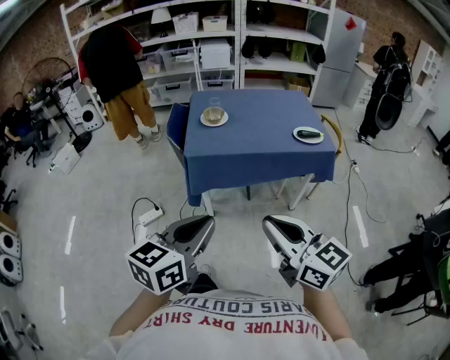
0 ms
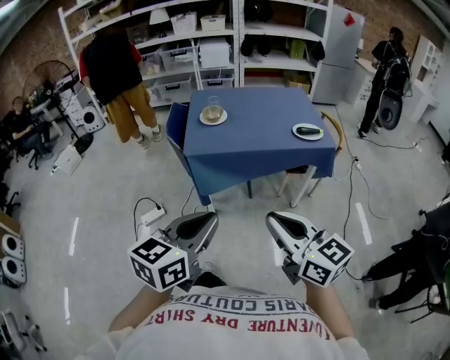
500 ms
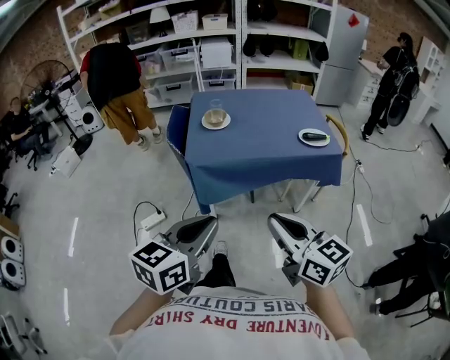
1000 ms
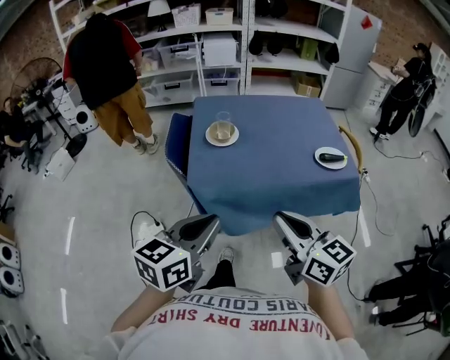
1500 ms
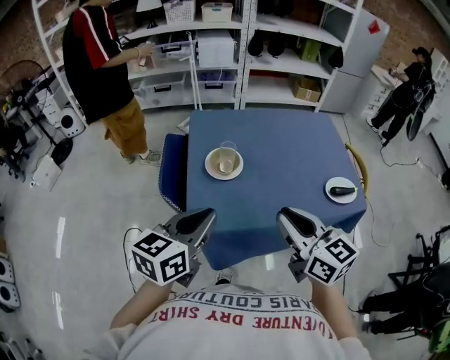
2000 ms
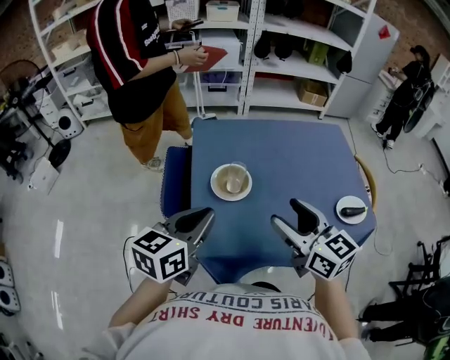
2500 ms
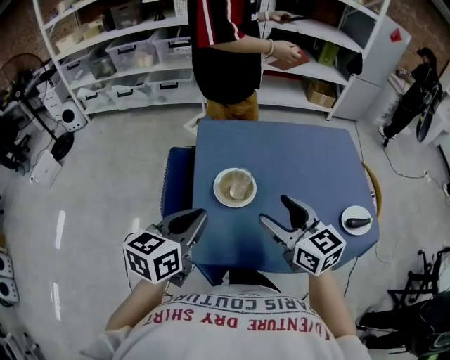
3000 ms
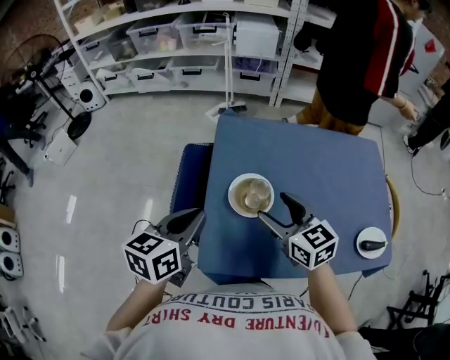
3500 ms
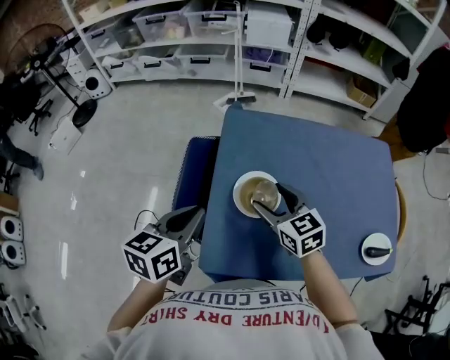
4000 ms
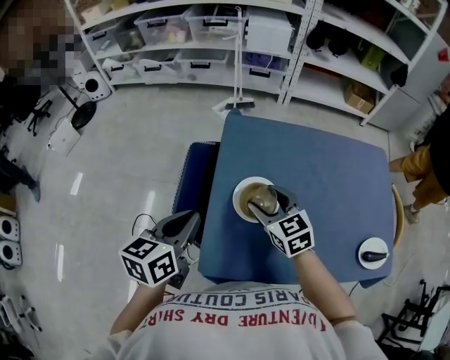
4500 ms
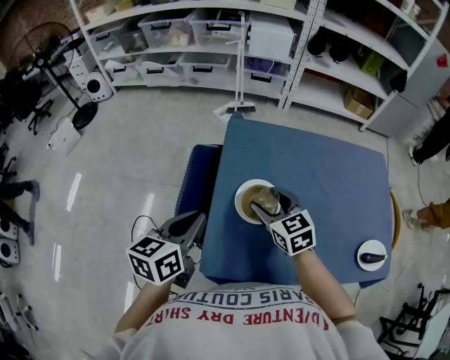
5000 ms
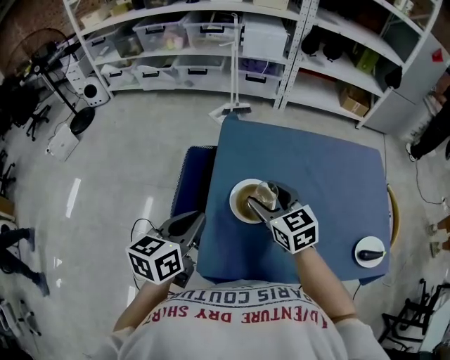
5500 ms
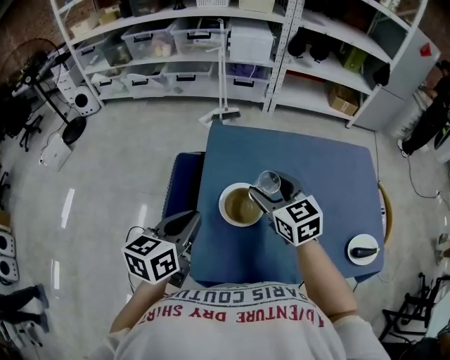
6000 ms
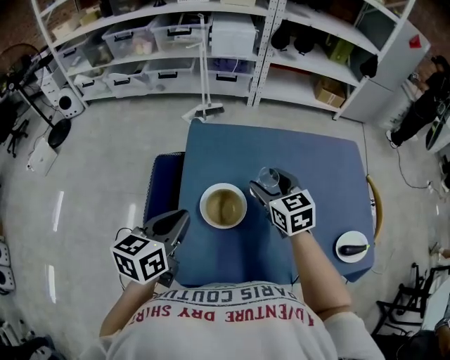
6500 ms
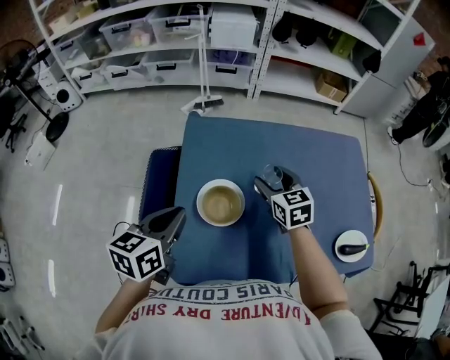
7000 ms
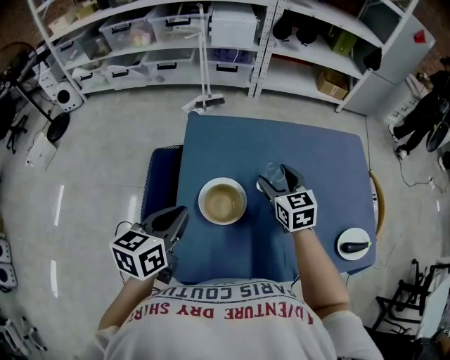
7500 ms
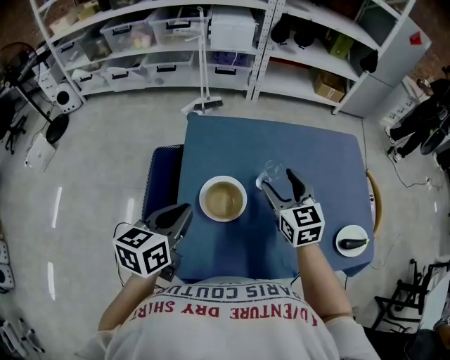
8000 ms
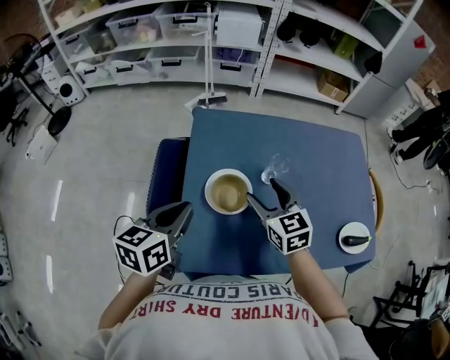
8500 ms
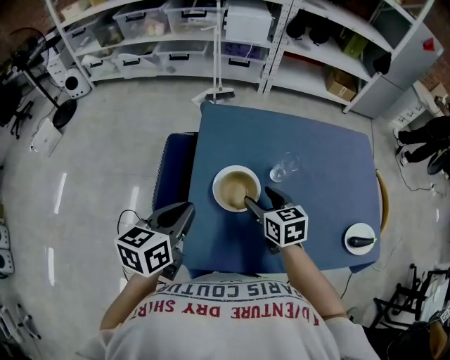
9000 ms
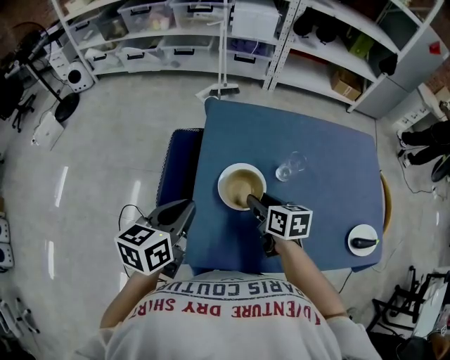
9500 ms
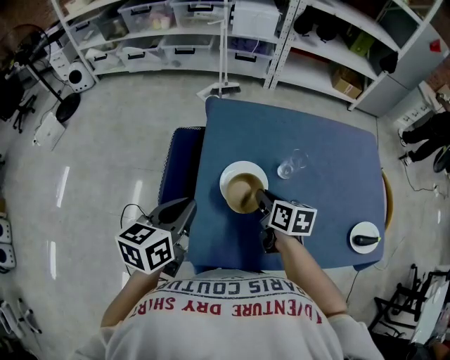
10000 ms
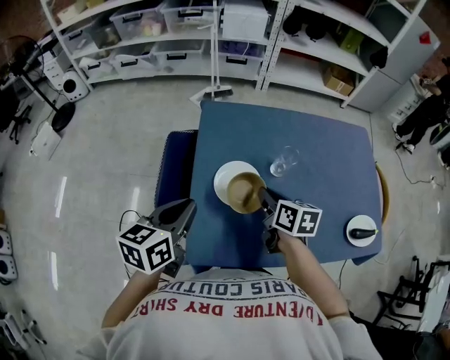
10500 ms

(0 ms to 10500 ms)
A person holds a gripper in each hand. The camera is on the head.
0 ms - 2000 ms: The two grippers go approximately 40 cm forward.
2000 ms - 4000 ms: The left gripper is displaced forward, to the left and downward by roughly 20 cm, and changes its angle by approximately 20 degrees. The right gripper moves forward and downward, approximately 30 cm, swivels about 20 degrees, and opens up.
4000 ms - 6500 ms: The left gripper shifts by roughly 5 cm, while the right gripper is displaced to the right and forward by some 10 cm.
6500 ms - 8500 ms: The right gripper heads backward, covering about 5 cm.
8500 ms - 10500 ms: The right gripper rotates roughly 40 degrees, and closes.

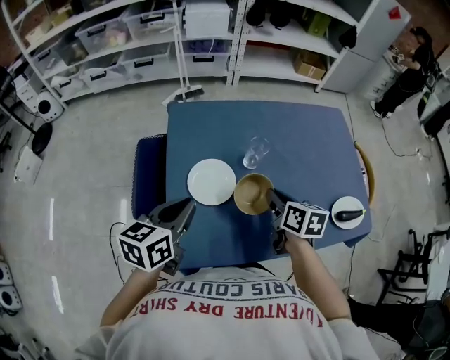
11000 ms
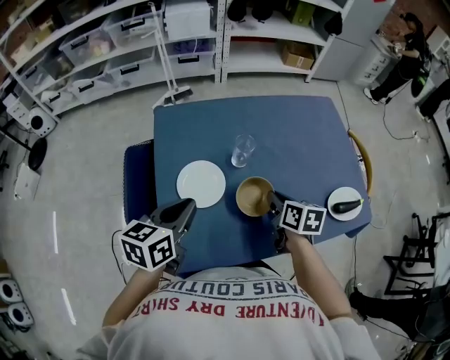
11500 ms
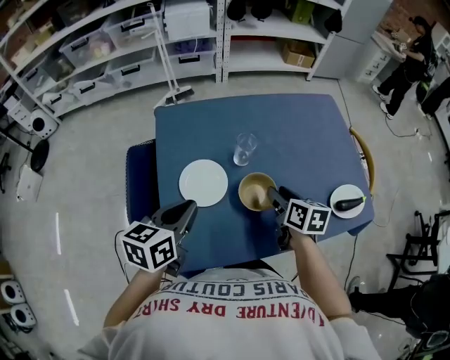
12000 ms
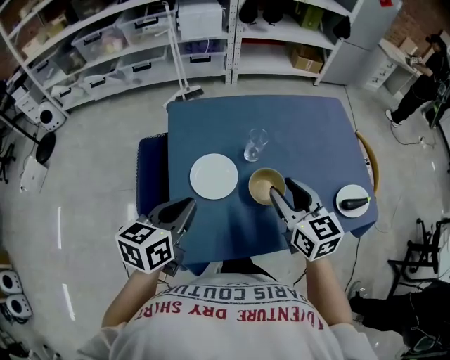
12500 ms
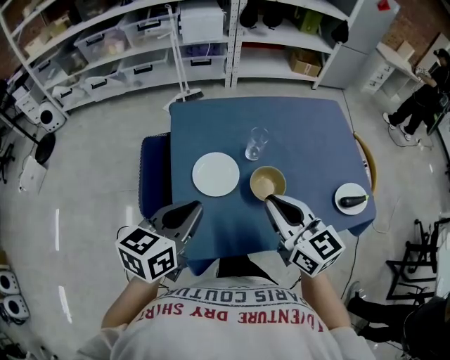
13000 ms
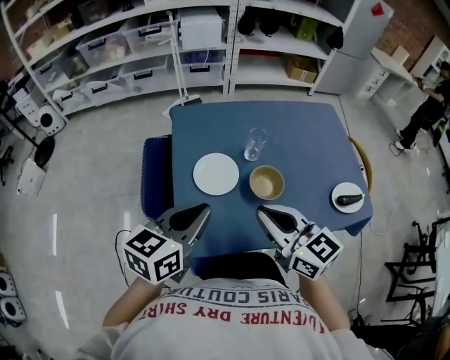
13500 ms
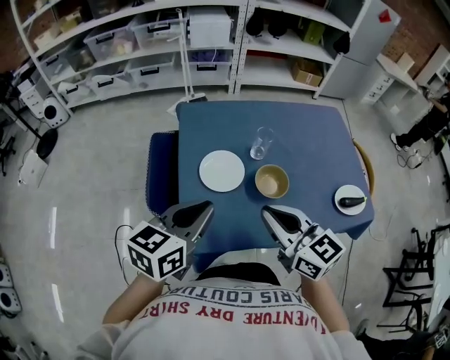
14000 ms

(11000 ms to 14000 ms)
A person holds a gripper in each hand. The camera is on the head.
11000 ms - 12500 ms: The right gripper goes approximately 10 cm upward, swivels approximately 30 degrees, and opens up.
12500 ms - 14000 ms: The left gripper is displaced backward by some 5 cm. The right gripper travels backward and to the left by about 15 cm, and closes.

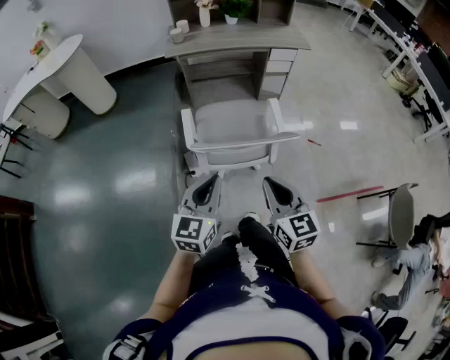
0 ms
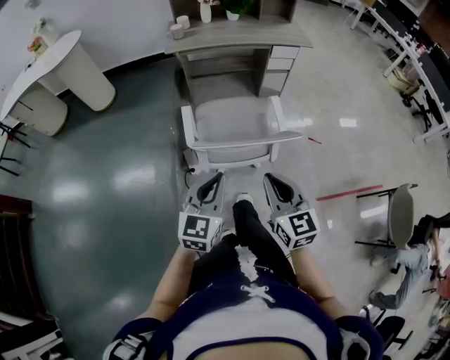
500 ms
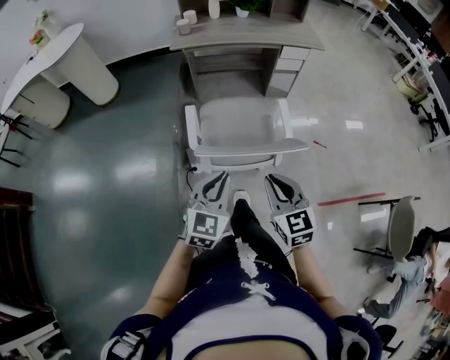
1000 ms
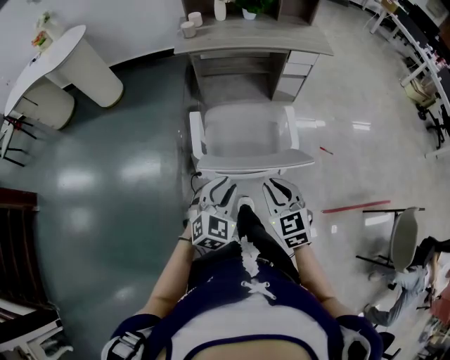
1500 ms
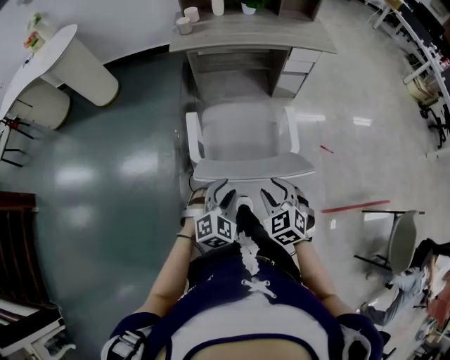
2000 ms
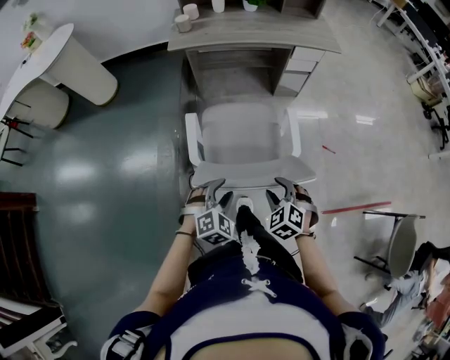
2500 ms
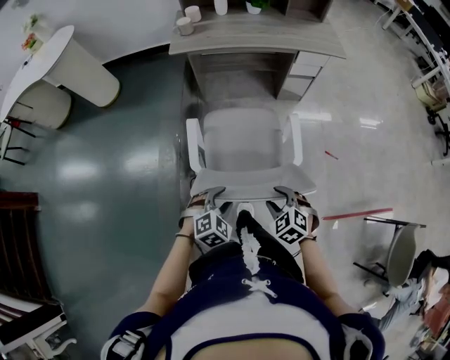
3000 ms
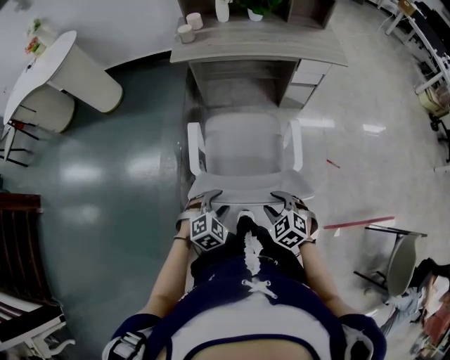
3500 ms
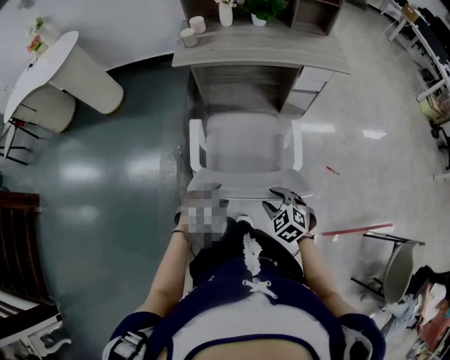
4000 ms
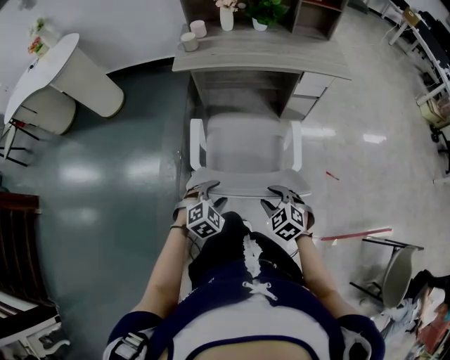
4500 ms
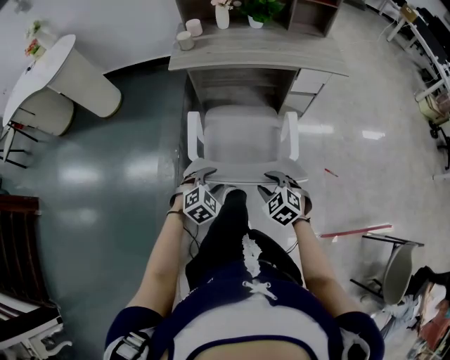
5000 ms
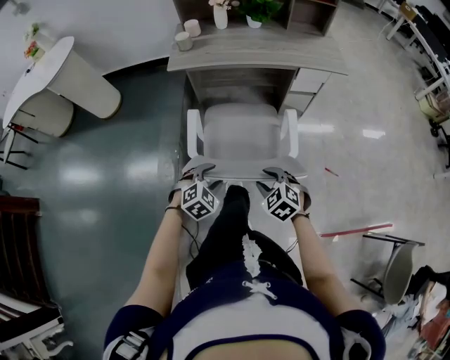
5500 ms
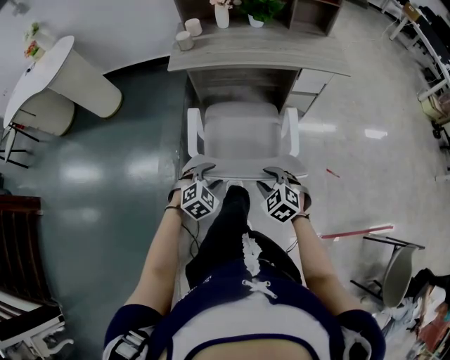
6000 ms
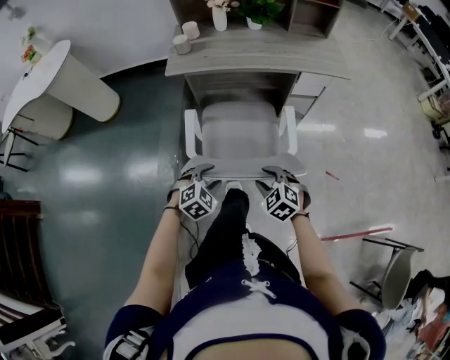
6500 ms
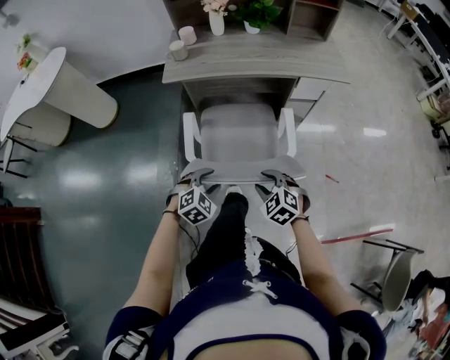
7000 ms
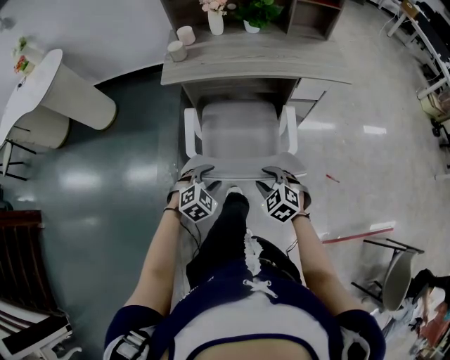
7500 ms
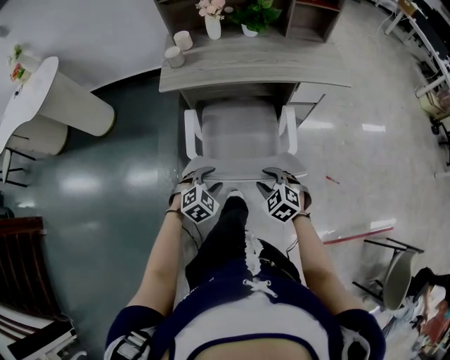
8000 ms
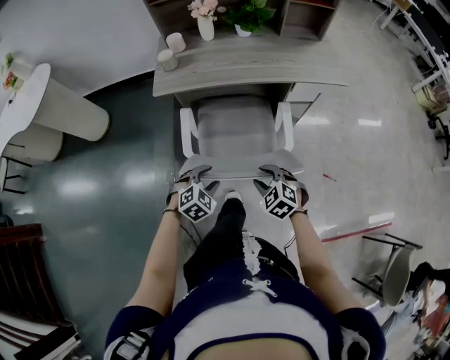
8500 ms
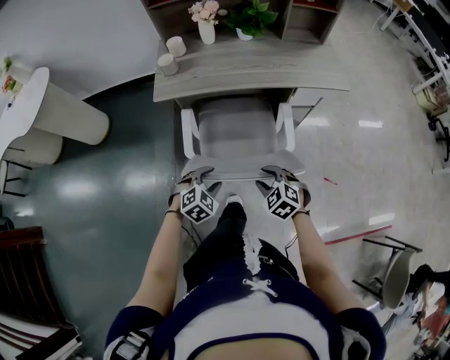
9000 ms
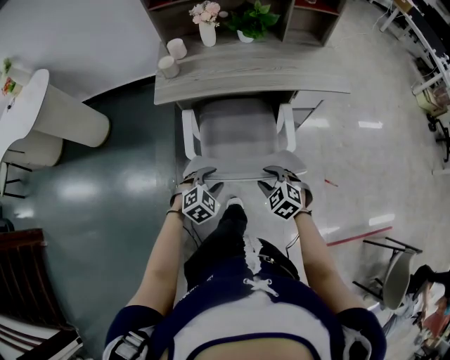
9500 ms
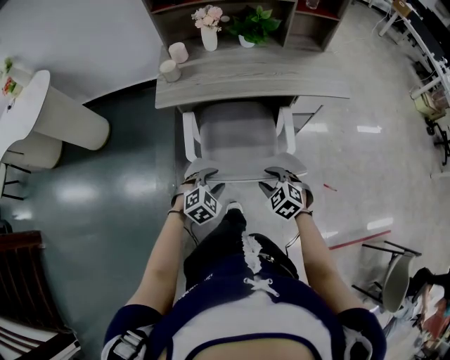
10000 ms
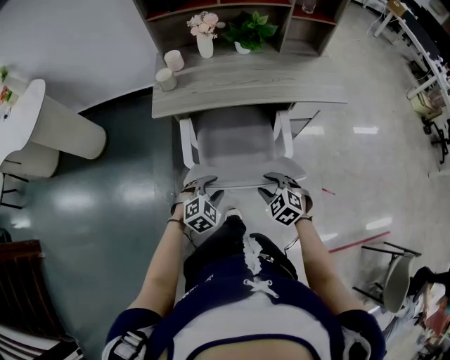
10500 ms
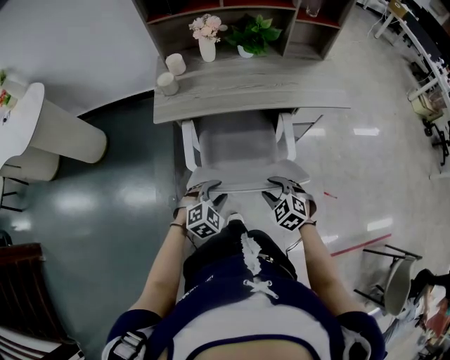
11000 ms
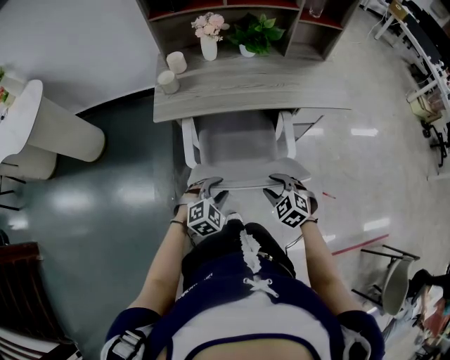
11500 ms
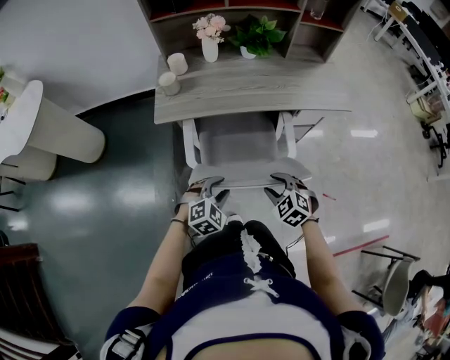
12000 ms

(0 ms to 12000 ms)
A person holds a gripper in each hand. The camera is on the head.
0 ms - 2000 ms: The left gripper heads downward and forward, covering approximately 20 cm, swivels roughly 50 degrees, and opens its fingers; the right gripper moves forward and downward, some 20 cm, rotates roughly 40 degrees, and opens.
2000 ms - 4000 ms: Both grippers move forward and downward, roughly 15 cm.
4000 ms - 6000 ms: The two grippers go some 10 cm forward.
6000 ms - 8000 ms: Both grippers travel together forward, some 10 cm.
8000 ms - 10000 ms: Both grippers move forward, about 10 cm.
10000 ms - 12000 ms: Both grippers move forward, roughly 5 cm.

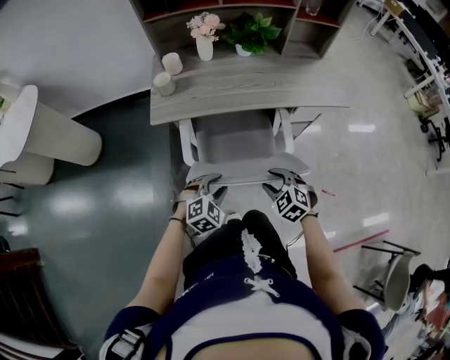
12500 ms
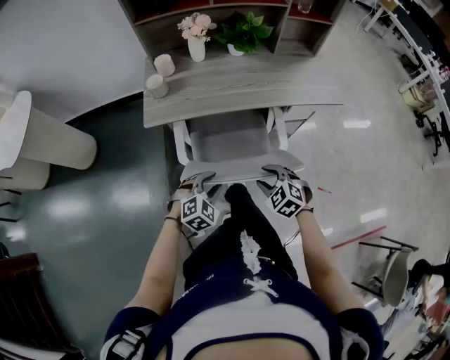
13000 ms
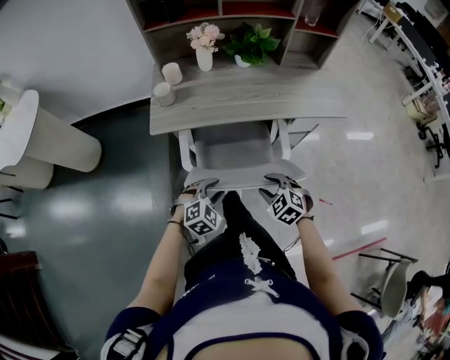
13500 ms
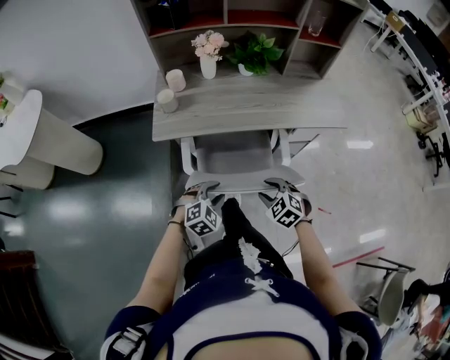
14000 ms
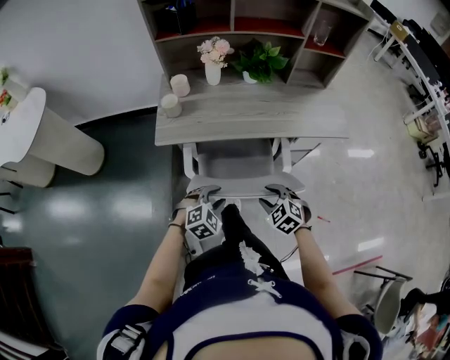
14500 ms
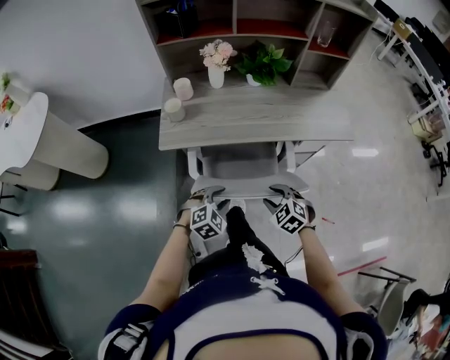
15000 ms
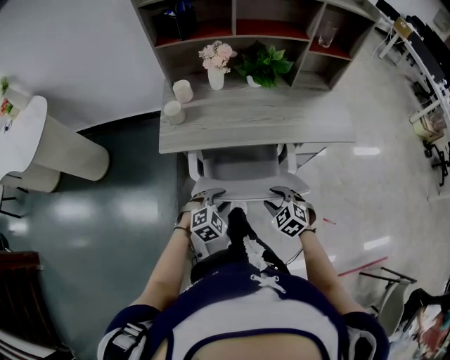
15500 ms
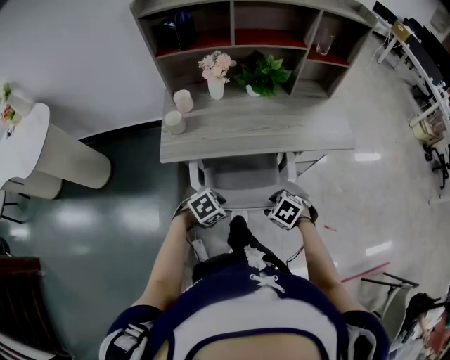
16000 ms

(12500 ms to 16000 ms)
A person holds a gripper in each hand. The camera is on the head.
12500 ms - 14500 ms: The left gripper heads forward, covering approximately 5 cm.
14500 ms - 16000 ms: The right gripper changes its angle by approximately 30 degrees, while the left gripper changes its angle by roughly 40 degrees.
